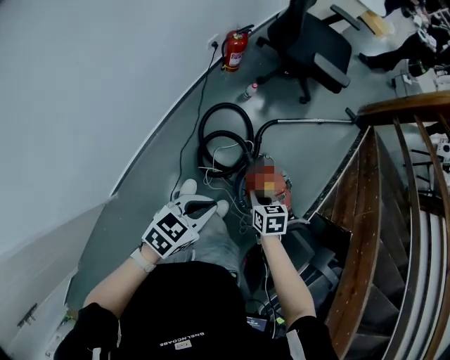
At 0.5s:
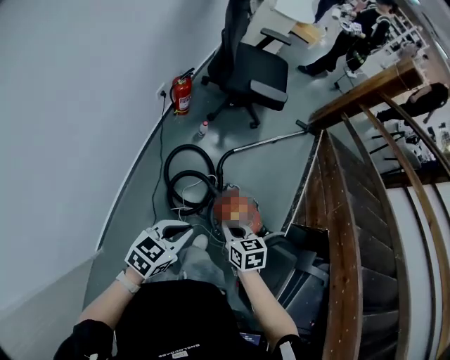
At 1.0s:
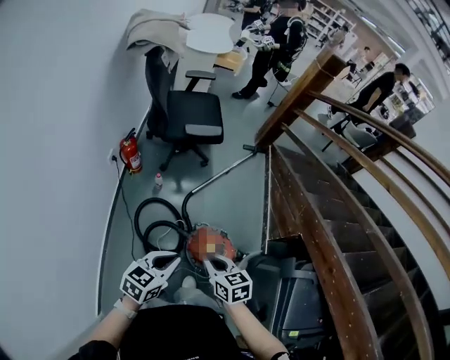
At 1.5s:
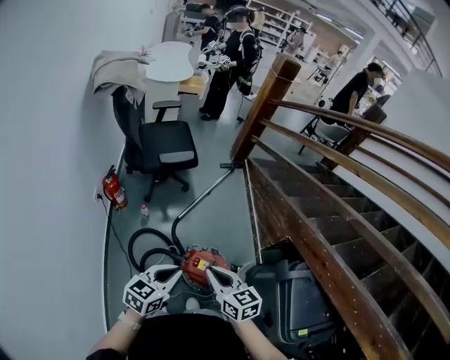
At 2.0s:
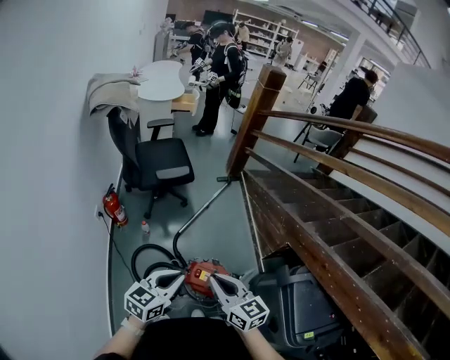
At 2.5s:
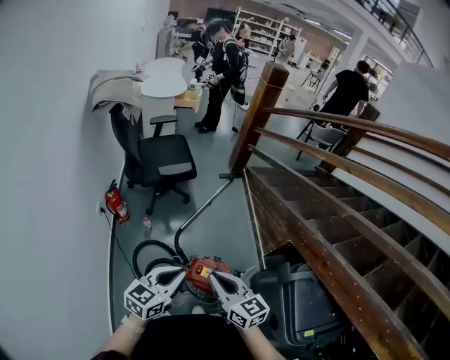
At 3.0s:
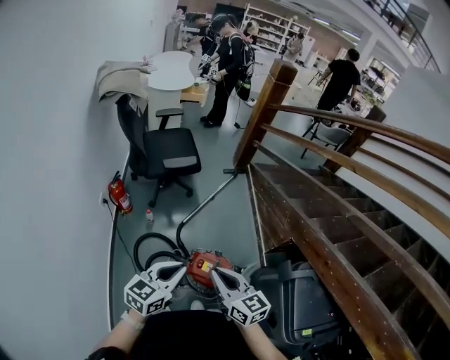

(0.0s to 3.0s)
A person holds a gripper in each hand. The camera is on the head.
0.0s - 1.5s: The left gripper goes about 20 cm upward, and changes its angle by about 30 degrees. Meanwhile the right gripper travels upward by roughly 35 cm, and points its fingers about 30 degrees further upward.
1.5s - 3.0s: The left gripper heads upward, covering approximately 5 cm. The right gripper shifts by about 5 cm.

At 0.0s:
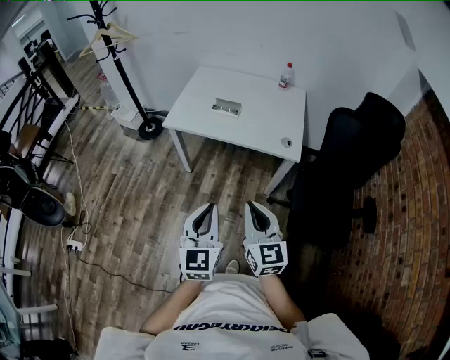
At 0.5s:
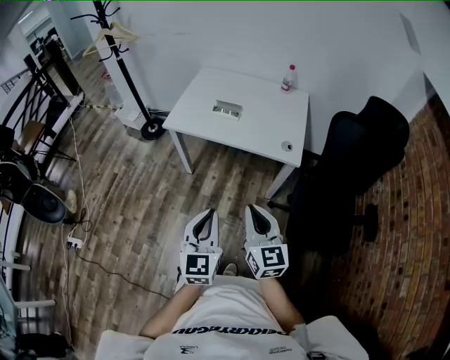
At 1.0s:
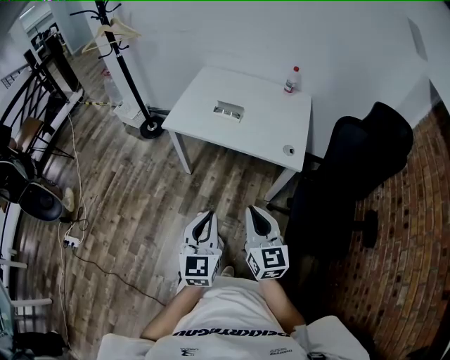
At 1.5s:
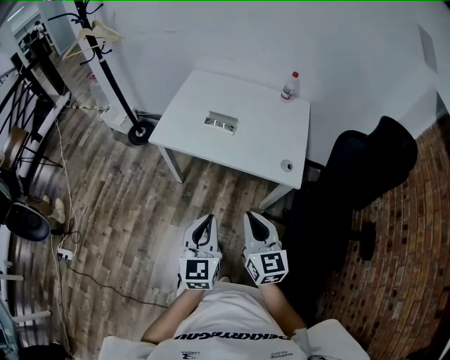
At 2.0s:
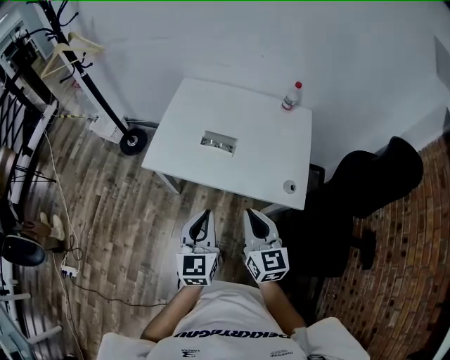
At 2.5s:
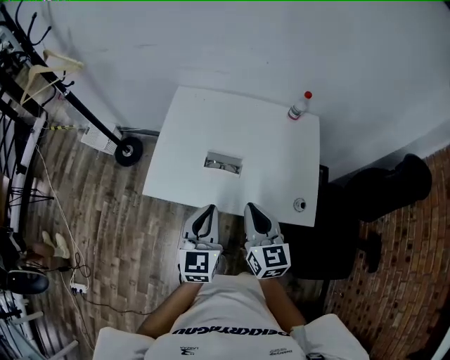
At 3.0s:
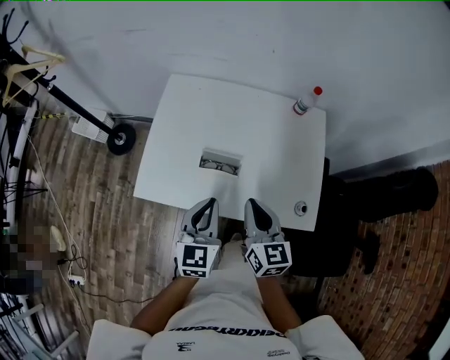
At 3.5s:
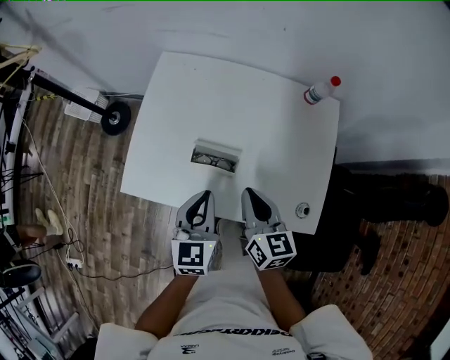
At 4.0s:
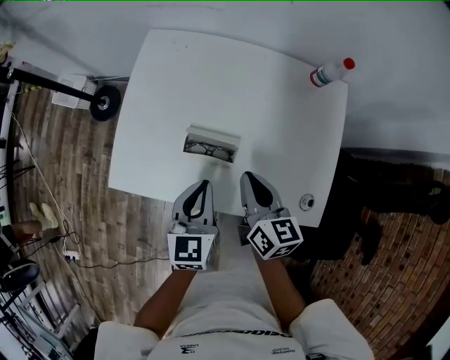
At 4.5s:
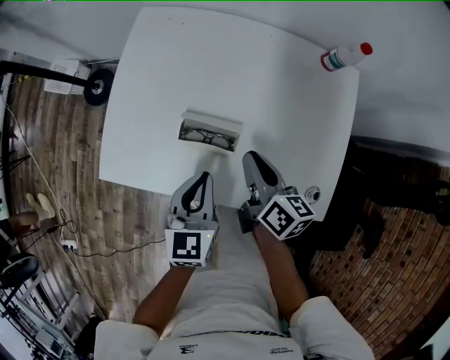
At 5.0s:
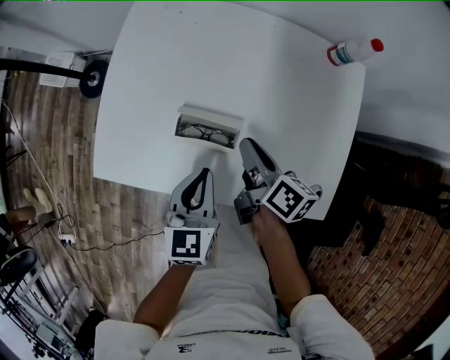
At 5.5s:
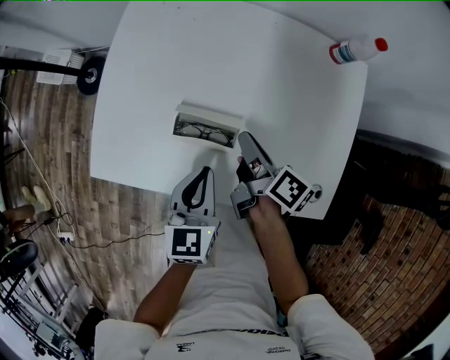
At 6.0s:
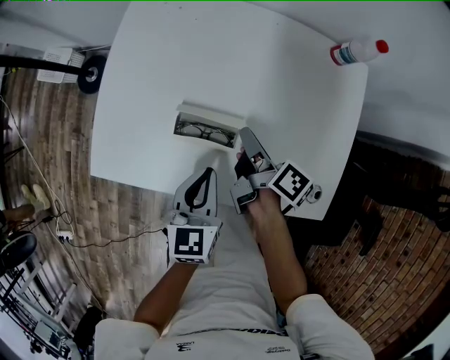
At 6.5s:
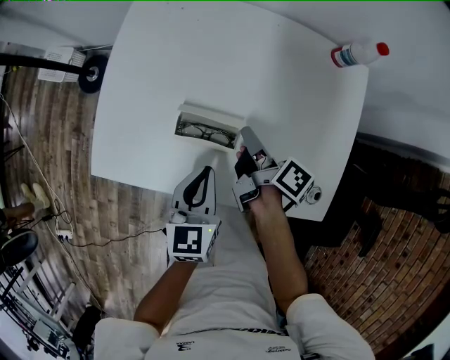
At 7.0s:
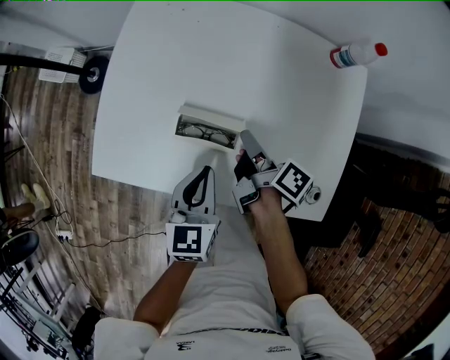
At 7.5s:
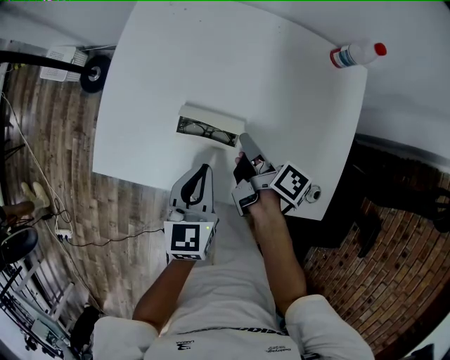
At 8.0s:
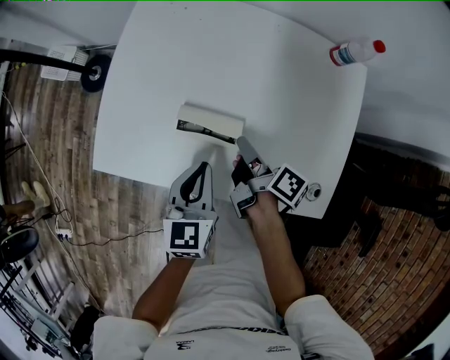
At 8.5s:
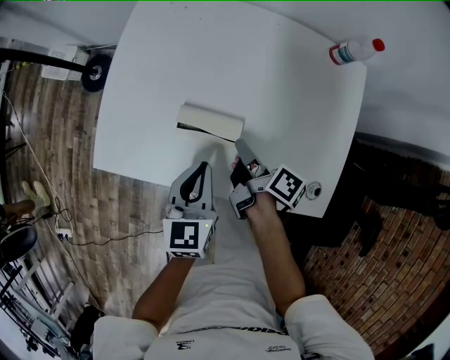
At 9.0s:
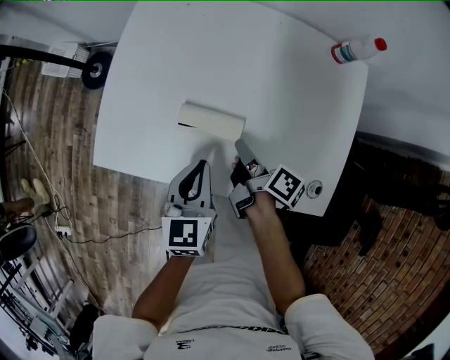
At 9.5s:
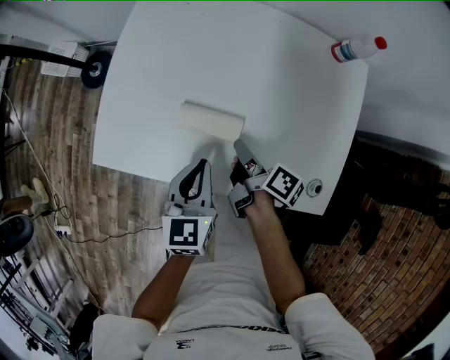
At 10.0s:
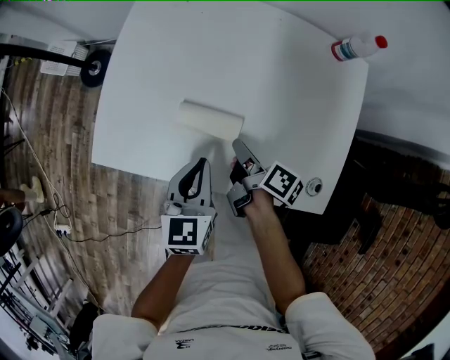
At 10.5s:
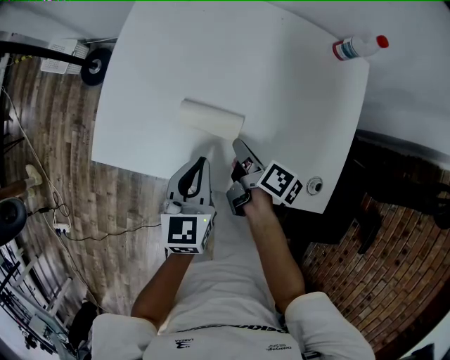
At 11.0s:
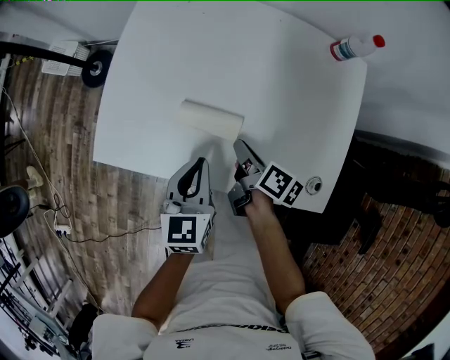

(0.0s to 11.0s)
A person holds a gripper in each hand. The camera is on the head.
0.0s - 2.0s: Both grippers move forward, roughly 30 cm.
2.0s - 3.5s: Both grippers move forward, roughly 30 cm.
3.5s - 5.5s: The left gripper shifts approximately 10 cm downward. The right gripper is displaced downward and forward by roughly 15 cm, and twists some 50 degrees clockwise, seen from behind.
5.5s - 9.0s: The grippers move only a little.
9.0s - 11.0s: The grippers stay close to where they were, moving slightly.

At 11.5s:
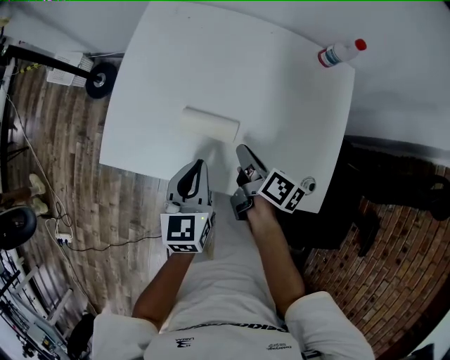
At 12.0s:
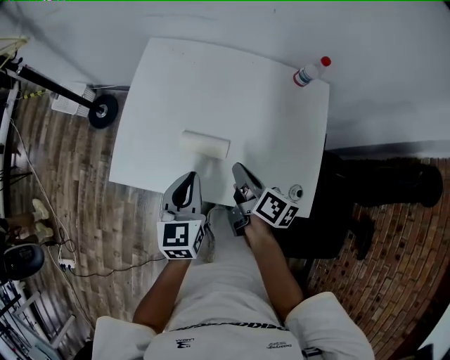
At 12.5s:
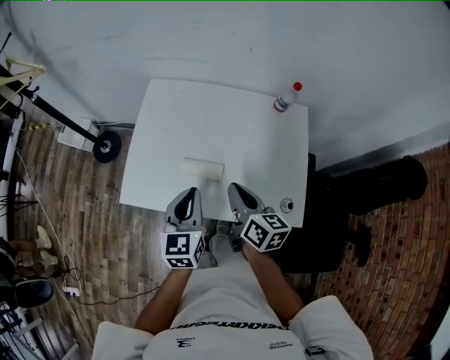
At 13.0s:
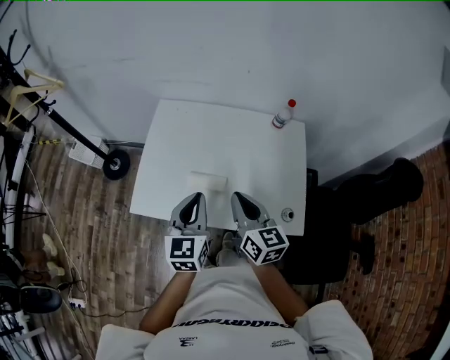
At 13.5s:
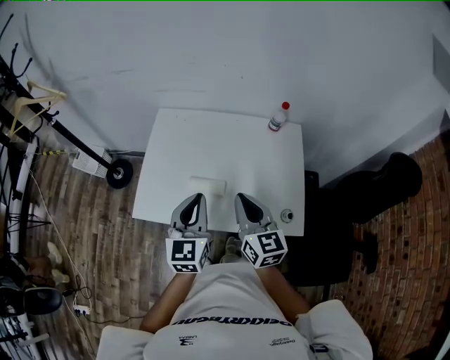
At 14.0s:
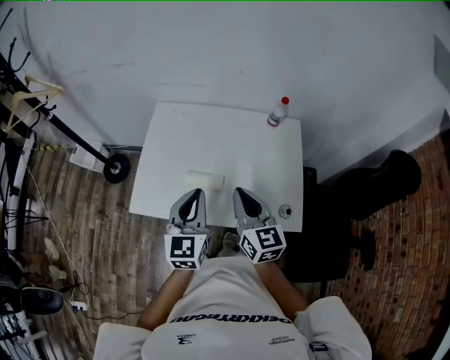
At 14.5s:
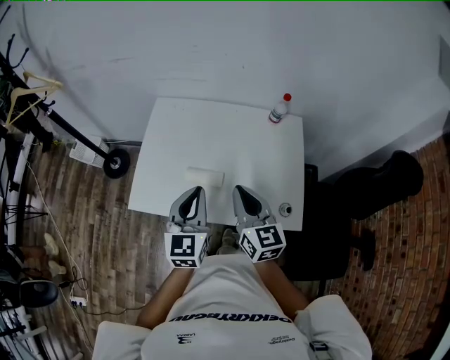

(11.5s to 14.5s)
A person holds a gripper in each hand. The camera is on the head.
11.5s - 13.0s: Both grippers move upward, some 25 cm. The right gripper rotates around the line of its fingers by approximately 50 degrees, counterclockwise from behind.
13.0s - 14.5s: The grippers make only small movements.

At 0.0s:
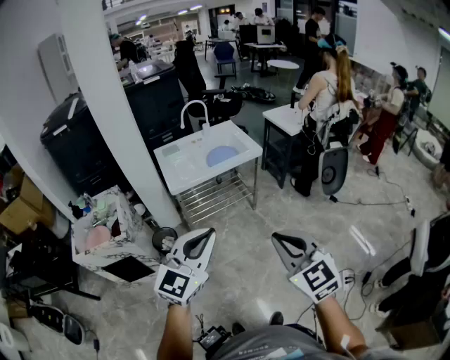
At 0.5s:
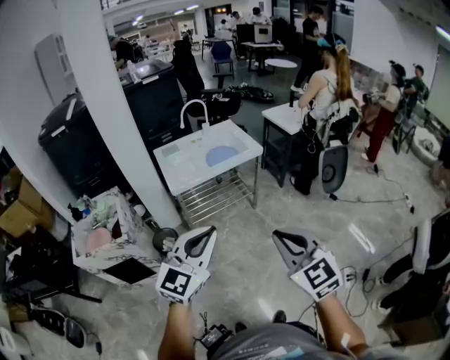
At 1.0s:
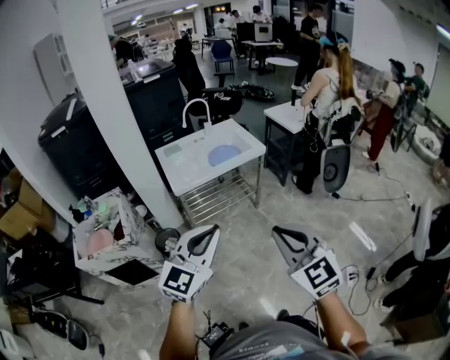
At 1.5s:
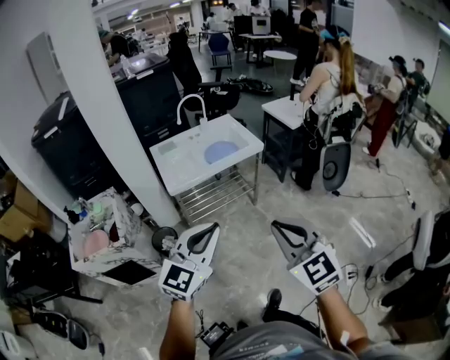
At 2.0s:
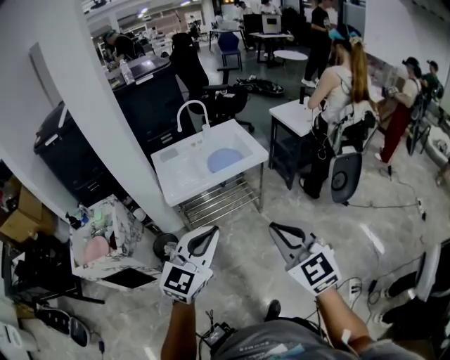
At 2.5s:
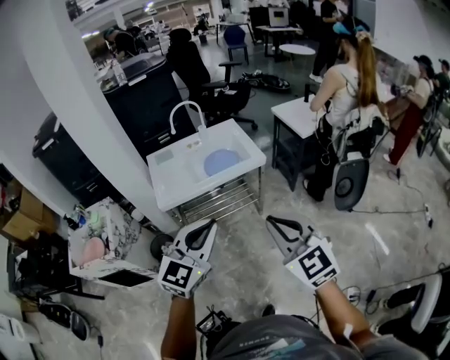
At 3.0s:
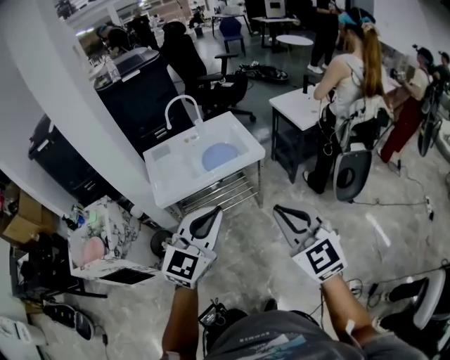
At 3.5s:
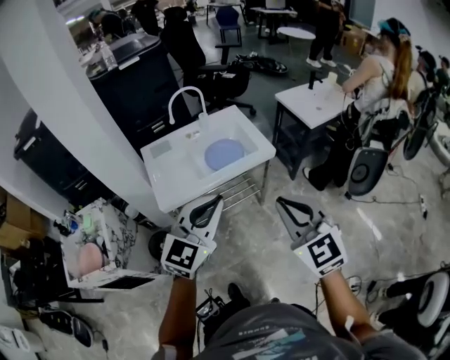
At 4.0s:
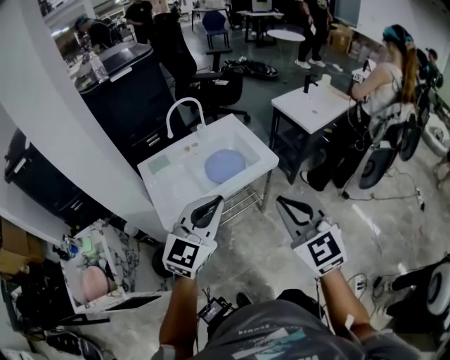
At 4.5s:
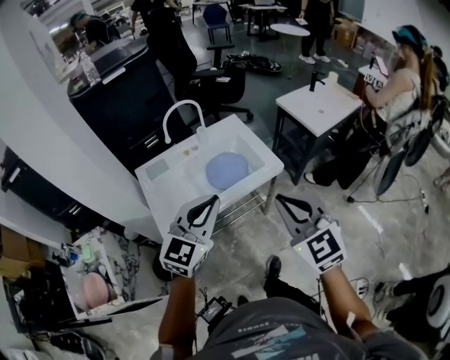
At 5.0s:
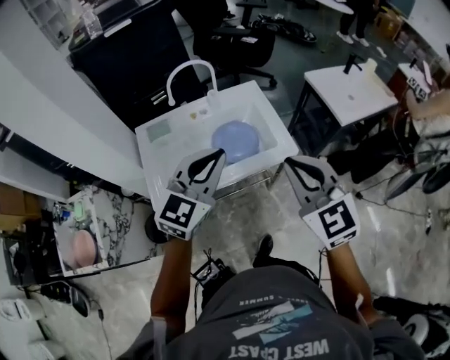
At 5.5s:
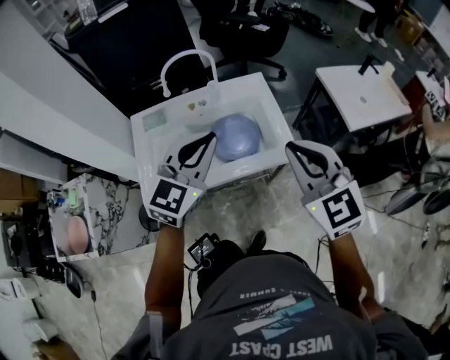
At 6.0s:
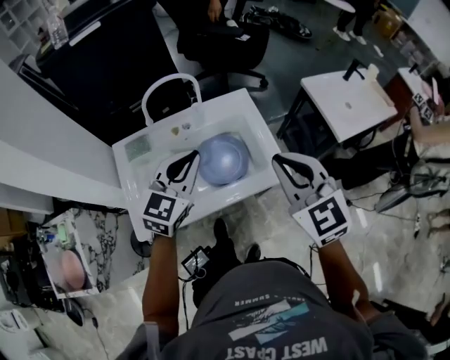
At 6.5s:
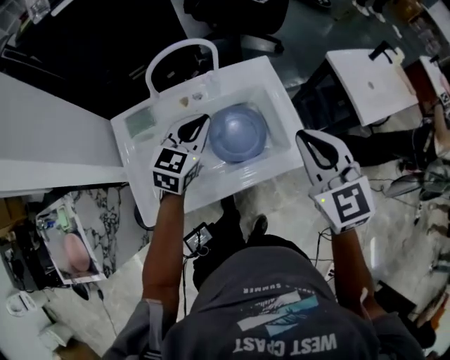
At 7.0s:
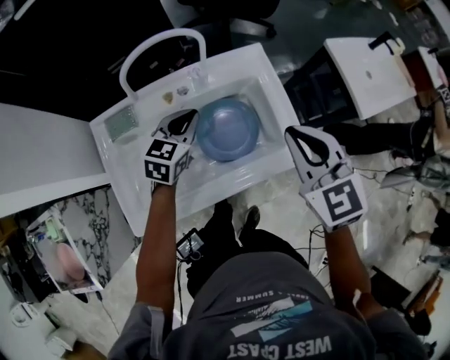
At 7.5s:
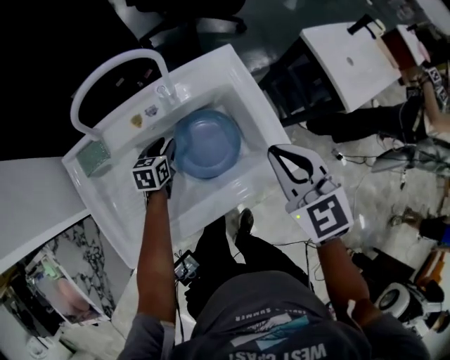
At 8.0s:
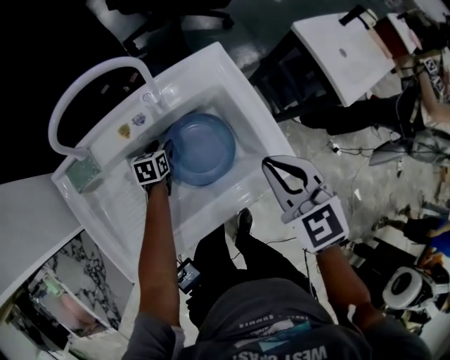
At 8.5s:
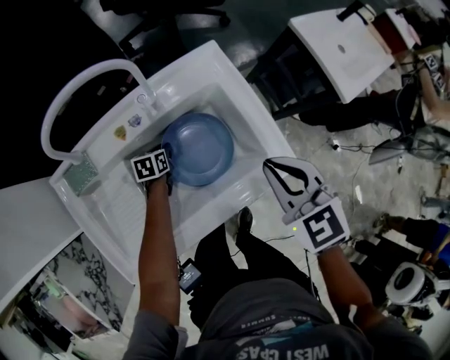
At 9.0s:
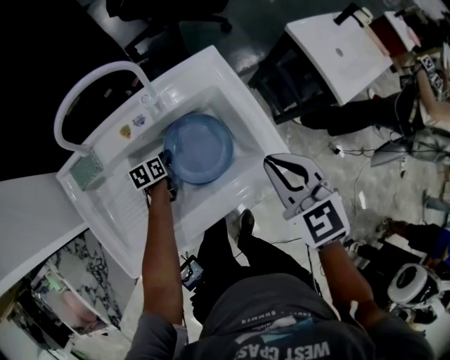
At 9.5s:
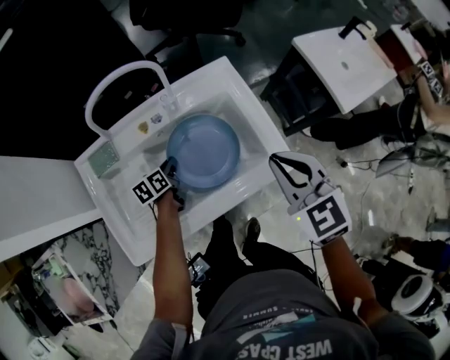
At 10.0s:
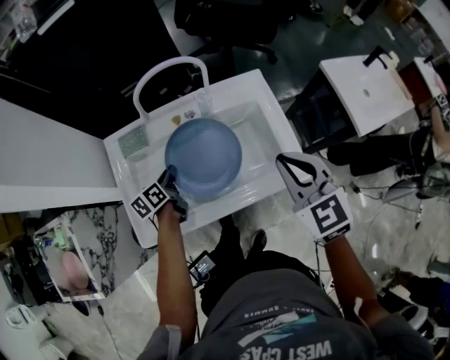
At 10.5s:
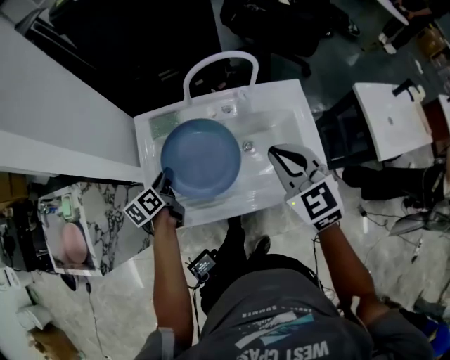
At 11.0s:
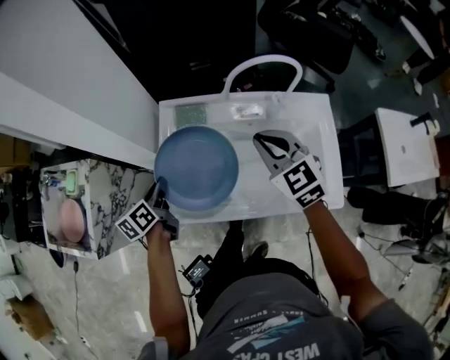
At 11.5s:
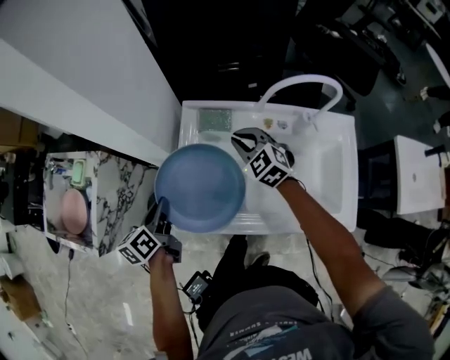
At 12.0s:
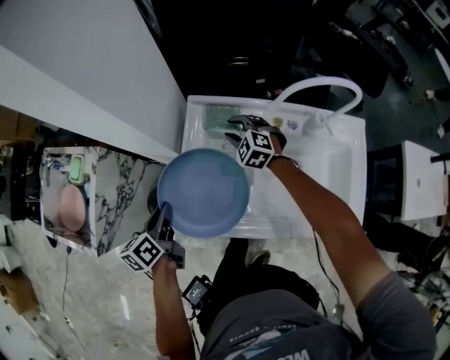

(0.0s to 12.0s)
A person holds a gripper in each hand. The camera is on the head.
0.0s - 2.0s: Both grippers move forward, approximately 15 cm.
2.0s - 4.0s: Both grippers move forward, roughly 25 cm.
4.0s - 6.0s: The grippers both shift forward by some 35 cm.
6.0s - 8.0s: The right gripper travels downward and forward by roughly 20 cm, and turns by some 20 degrees; the left gripper heads downward and forward, covering some 50 cm, tilts its fingers approximately 40 degrees downward, and opens its fingers.
8.0s - 10.0s: The left gripper moves upward, backward and to the left, roughly 25 cm, changes its angle by approximately 40 degrees, and closes its fingers; the right gripper travels upward by approximately 10 cm.
10.0s - 12.0s: The left gripper changes place by some 30 cm, and changes its angle by roughly 30 degrees, while the right gripper changes place by roughly 50 cm, turns by approximately 50 degrees, and opens.
